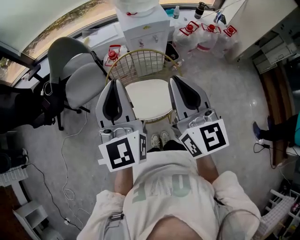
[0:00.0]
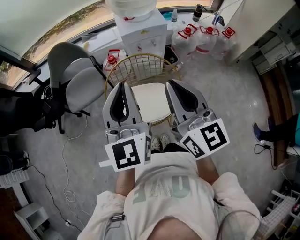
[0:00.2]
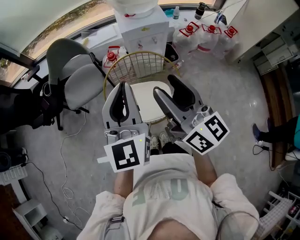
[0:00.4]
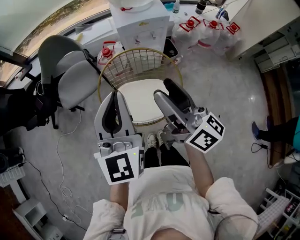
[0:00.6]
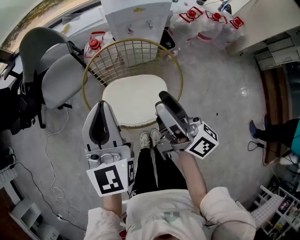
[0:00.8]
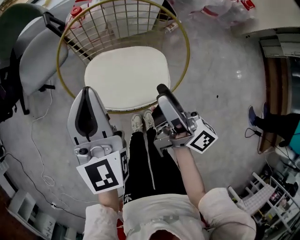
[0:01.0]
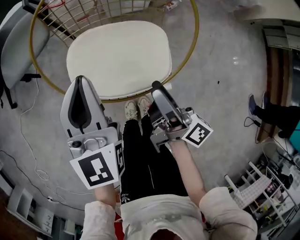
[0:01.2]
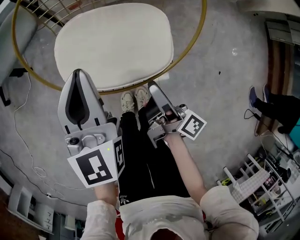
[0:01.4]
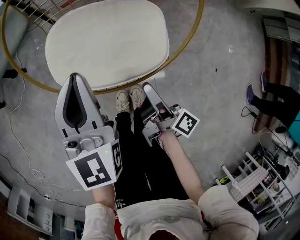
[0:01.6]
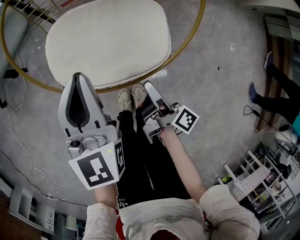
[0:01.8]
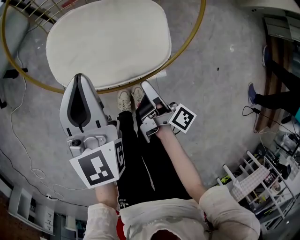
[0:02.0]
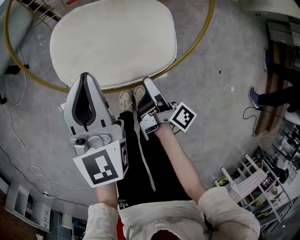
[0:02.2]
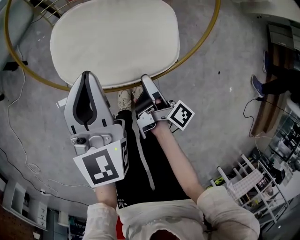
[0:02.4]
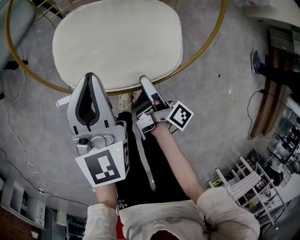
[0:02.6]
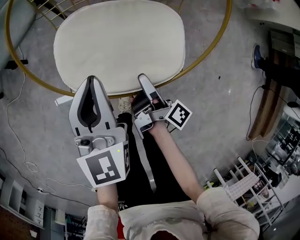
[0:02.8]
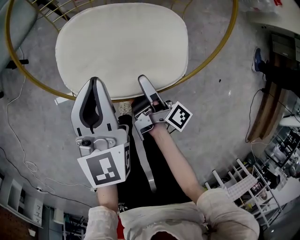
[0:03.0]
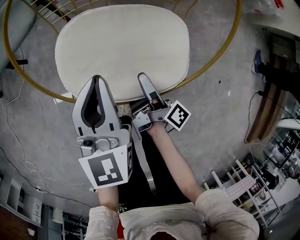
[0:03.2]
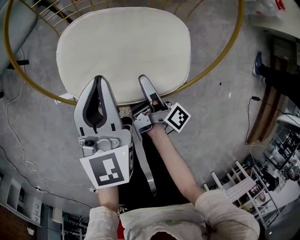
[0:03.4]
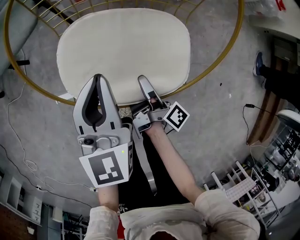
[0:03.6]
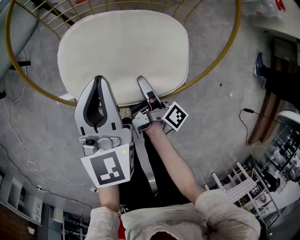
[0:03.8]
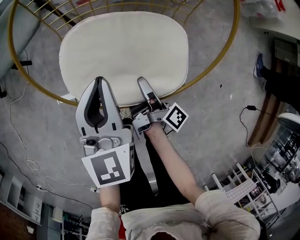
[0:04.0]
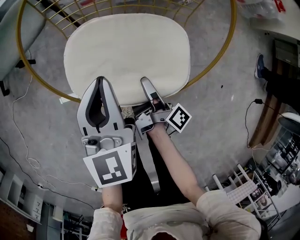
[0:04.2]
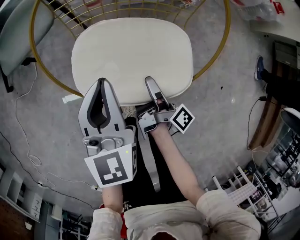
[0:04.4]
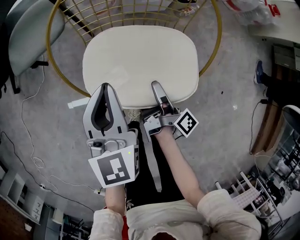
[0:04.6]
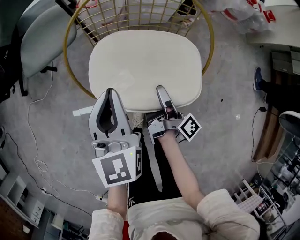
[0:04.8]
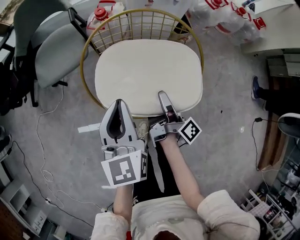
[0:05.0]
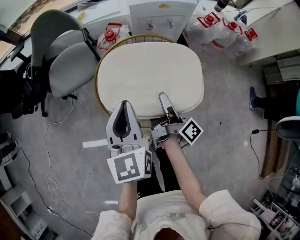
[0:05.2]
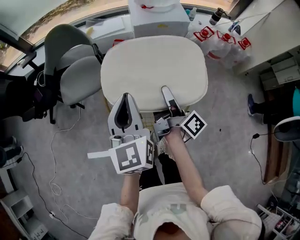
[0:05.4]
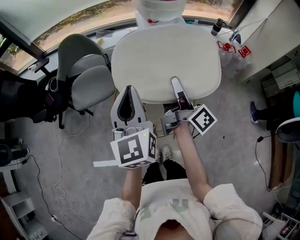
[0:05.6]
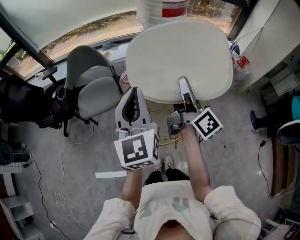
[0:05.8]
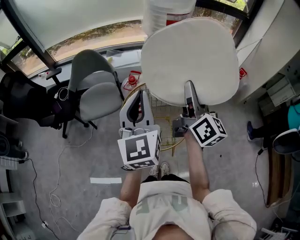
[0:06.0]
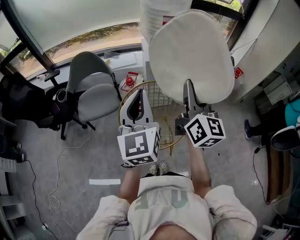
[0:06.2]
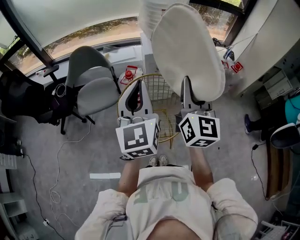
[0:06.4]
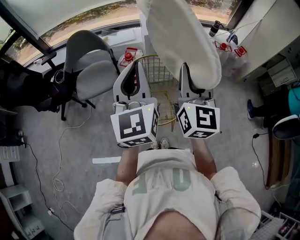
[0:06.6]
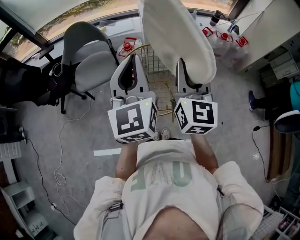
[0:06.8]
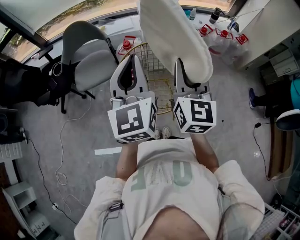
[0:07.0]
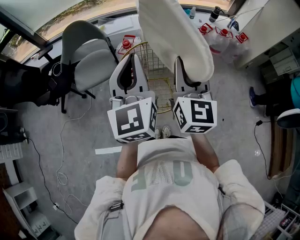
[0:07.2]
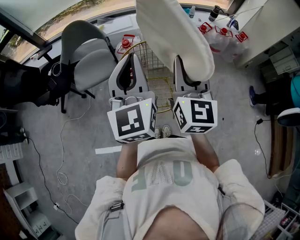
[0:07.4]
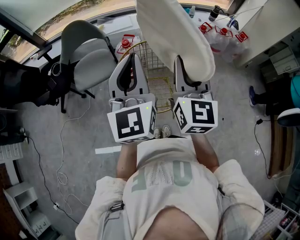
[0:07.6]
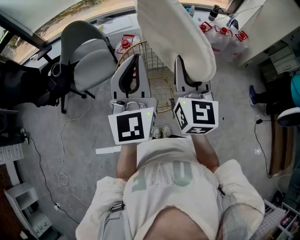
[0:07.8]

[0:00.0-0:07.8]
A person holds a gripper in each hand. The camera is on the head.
0:00.0 to 0:01.6: Both grippers travel together downward, roughly 50 cm. The left gripper rotates some 20 degrees, while the right gripper rotates around the line of its fingers by roughly 80 degrees, clockwise from behind, and opens its fingers.
0:01.6 to 0:03.2: The right gripper moves forward and downward, about 10 cm; the left gripper moves downward, approximately 5 cm.
0:03.2 to 0:04.6: The two grippers go roughly 10 cm upward. The right gripper closes up.
0:04.6 to 0:06.2: Both grippers move upward, approximately 50 cm. The left gripper rotates approximately 30 degrees. The right gripper rotates around the line of its fingers by roughly 80 degrees, counterclockwise from behind.
0:06.2 to 0:07.8: The right gripper goes about 5 cm backward.

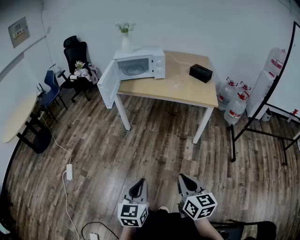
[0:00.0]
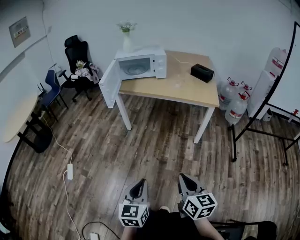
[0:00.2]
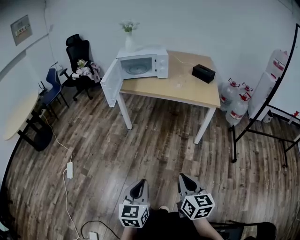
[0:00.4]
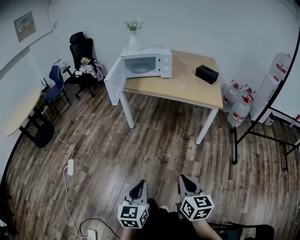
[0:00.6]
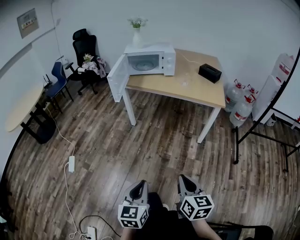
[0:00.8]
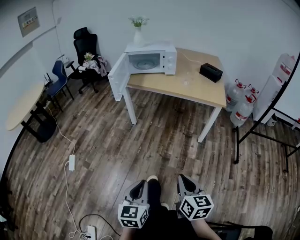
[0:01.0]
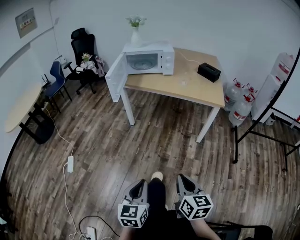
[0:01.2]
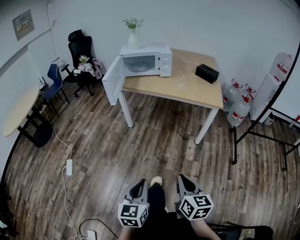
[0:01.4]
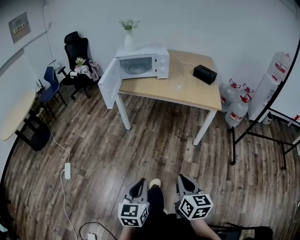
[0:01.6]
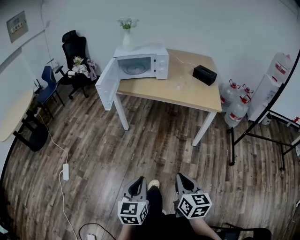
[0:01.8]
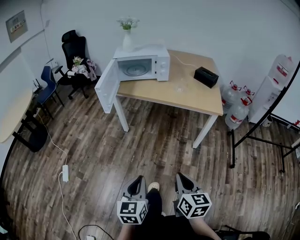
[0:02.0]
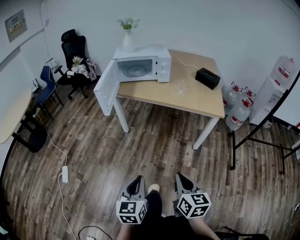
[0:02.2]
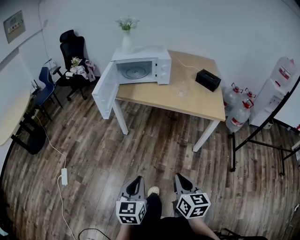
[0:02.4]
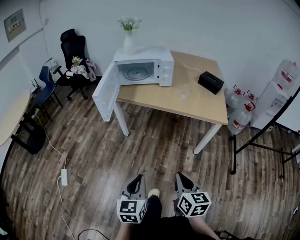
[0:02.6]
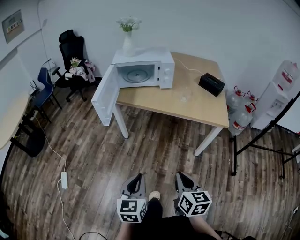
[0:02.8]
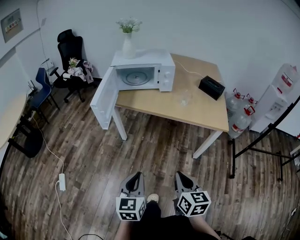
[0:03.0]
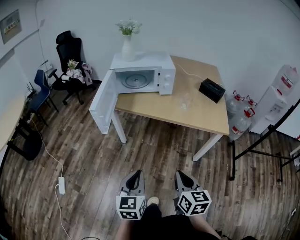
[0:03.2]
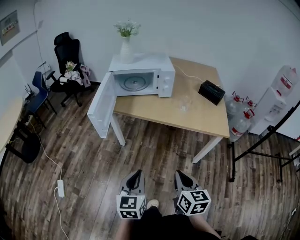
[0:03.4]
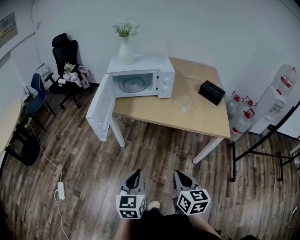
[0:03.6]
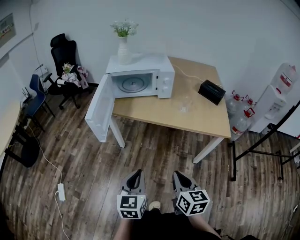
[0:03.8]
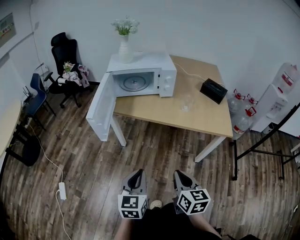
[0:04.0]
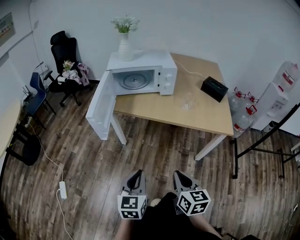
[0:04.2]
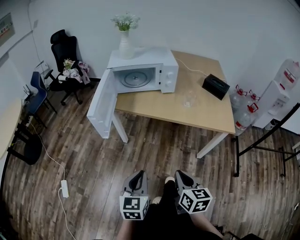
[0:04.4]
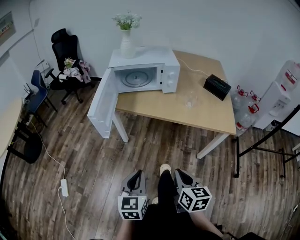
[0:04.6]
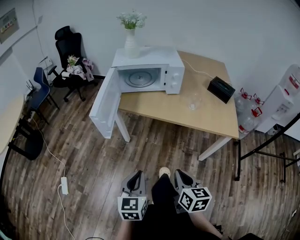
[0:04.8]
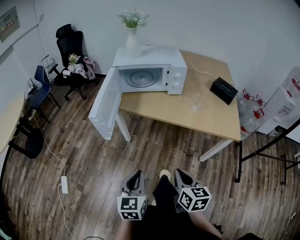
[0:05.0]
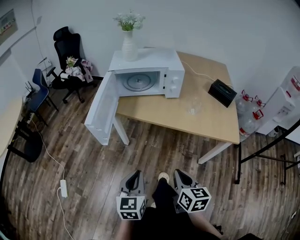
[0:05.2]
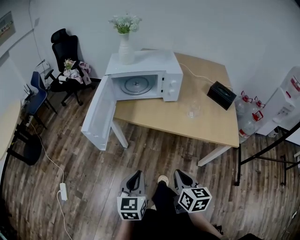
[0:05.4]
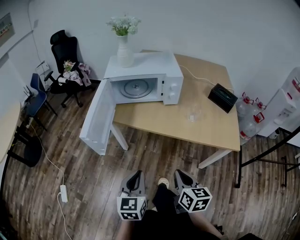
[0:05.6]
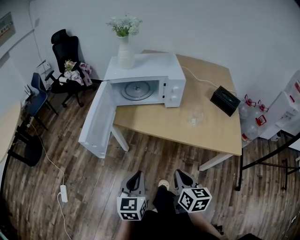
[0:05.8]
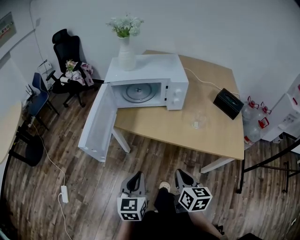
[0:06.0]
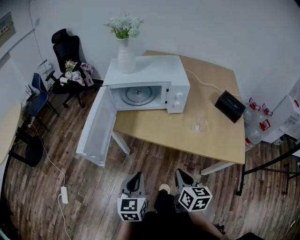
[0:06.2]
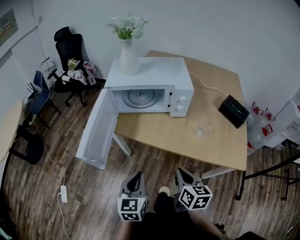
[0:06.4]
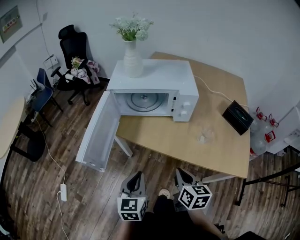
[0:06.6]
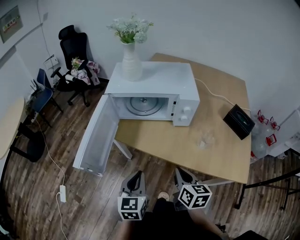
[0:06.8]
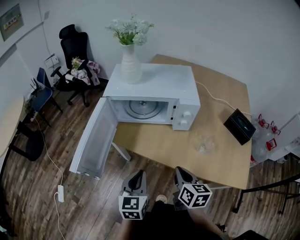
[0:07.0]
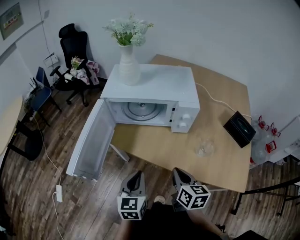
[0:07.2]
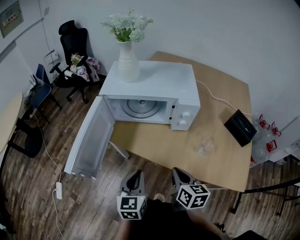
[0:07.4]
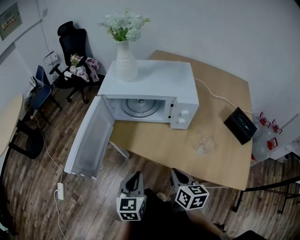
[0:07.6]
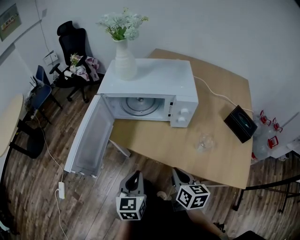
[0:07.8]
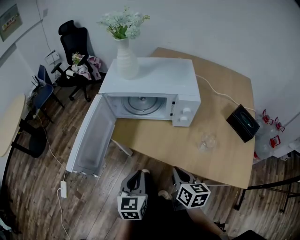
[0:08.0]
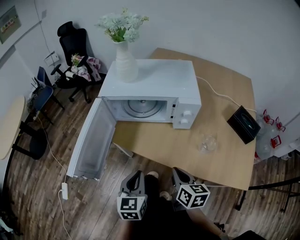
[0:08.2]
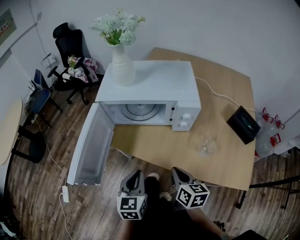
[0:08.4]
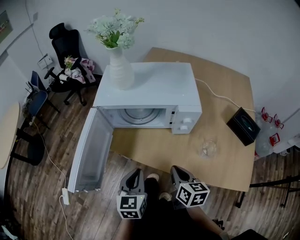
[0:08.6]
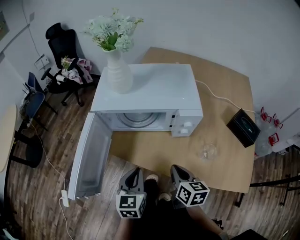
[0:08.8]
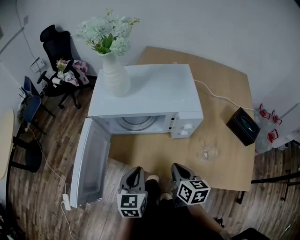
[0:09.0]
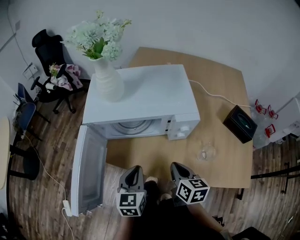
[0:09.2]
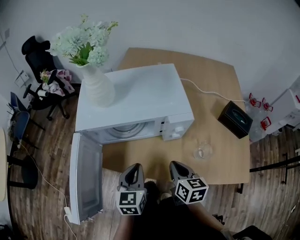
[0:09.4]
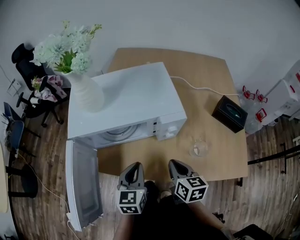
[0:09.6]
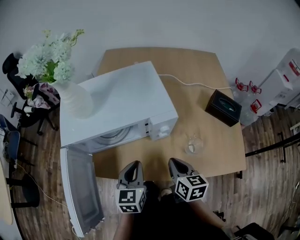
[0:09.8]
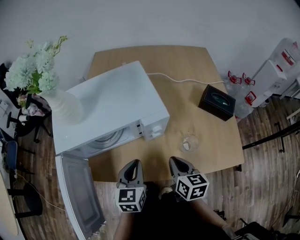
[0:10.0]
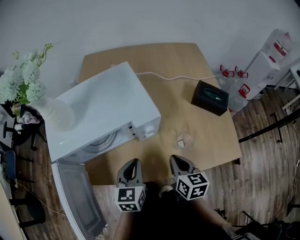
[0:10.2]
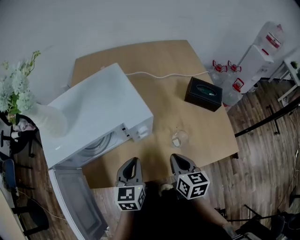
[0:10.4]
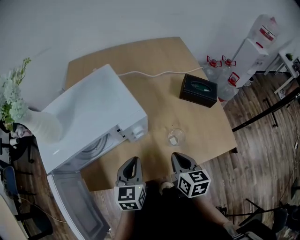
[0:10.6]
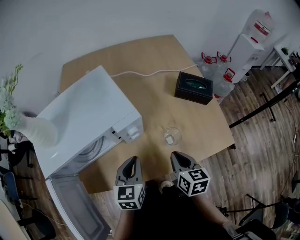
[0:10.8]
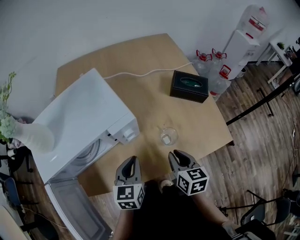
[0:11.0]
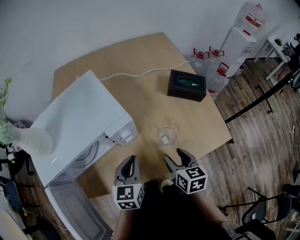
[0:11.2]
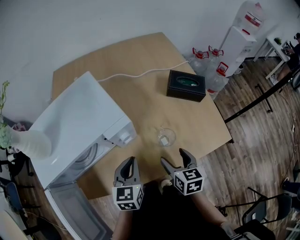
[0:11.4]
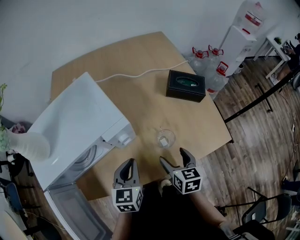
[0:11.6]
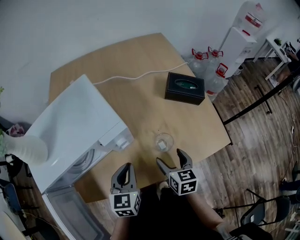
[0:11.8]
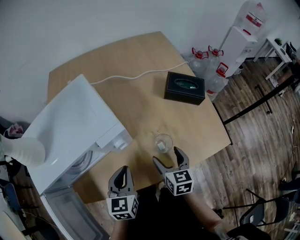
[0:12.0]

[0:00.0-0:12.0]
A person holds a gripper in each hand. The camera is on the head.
0:00.0 to 0:01.6: The grippers stay close to where they were, moving slightly.
0:01.6 to 0:03.0: Both grippers travel together forward, about 20 cm.
0:03.0 to 0:04.4: The two grippers go approximately 10 cm forward.
0:04.4 to 0:06.0: The two grippers go about 15 cm forward.
0:06.0 to 0:07.6: Both grippers move forward, some 15 cm.
0:07.6 to 0:09.0: Both grippers move forward, some 10 cm.
0:09.0 to 0:10.4: The left gripper shifts by some 15 cm, and changes its angle by approximately 30 degrees; the right gripper changes place by some 10 cm, and swivels some 30 degrees.
0:10.4 to 0:12.0: The right gripper travels downward by about 5 cm, and opens up.

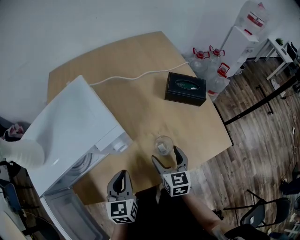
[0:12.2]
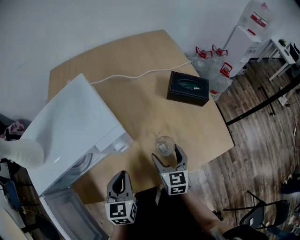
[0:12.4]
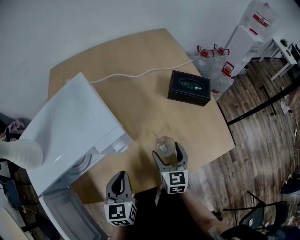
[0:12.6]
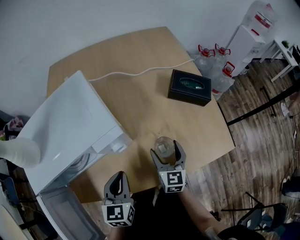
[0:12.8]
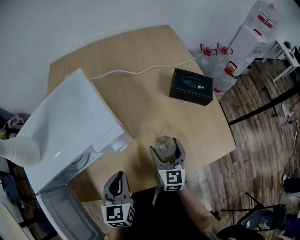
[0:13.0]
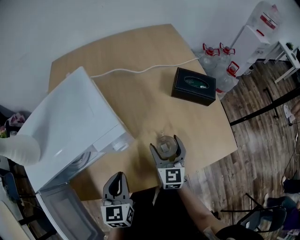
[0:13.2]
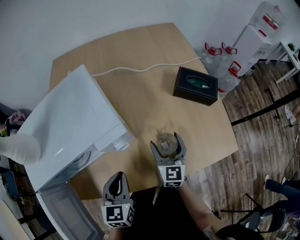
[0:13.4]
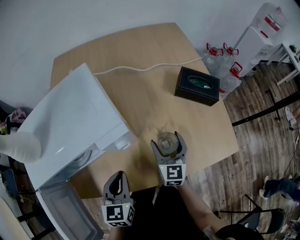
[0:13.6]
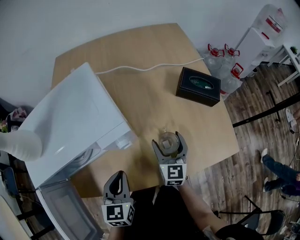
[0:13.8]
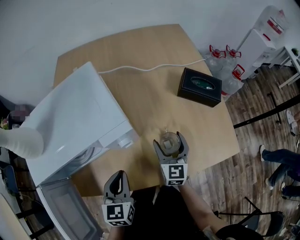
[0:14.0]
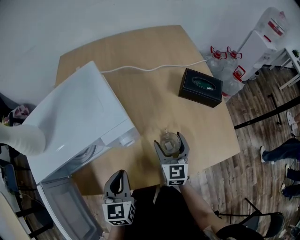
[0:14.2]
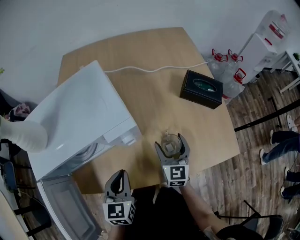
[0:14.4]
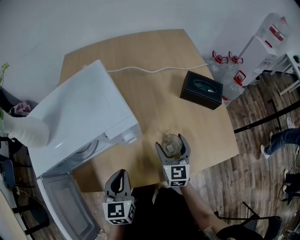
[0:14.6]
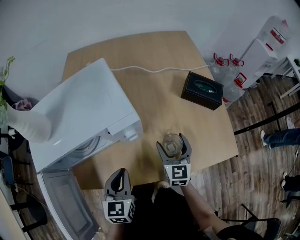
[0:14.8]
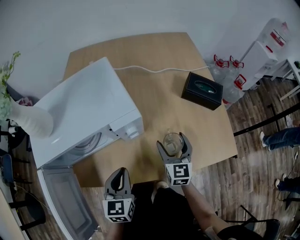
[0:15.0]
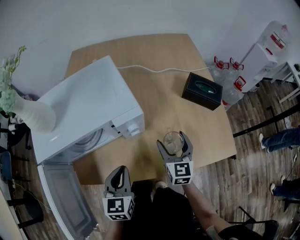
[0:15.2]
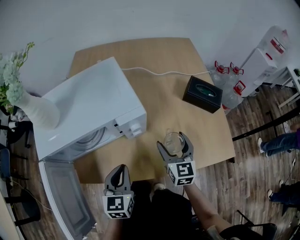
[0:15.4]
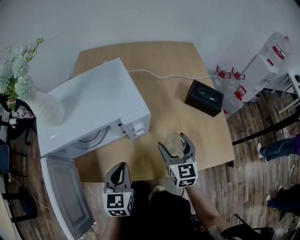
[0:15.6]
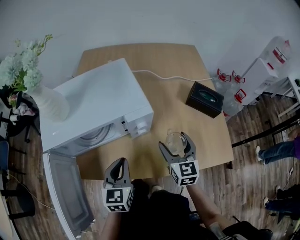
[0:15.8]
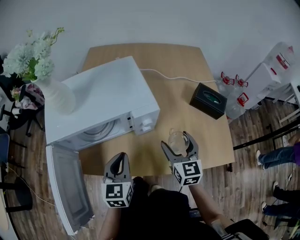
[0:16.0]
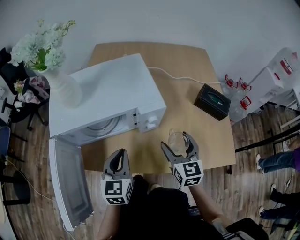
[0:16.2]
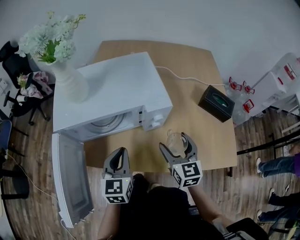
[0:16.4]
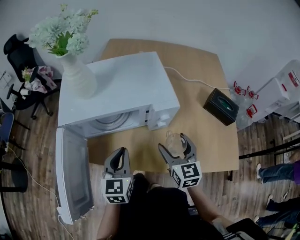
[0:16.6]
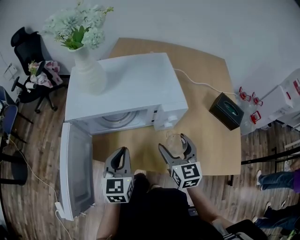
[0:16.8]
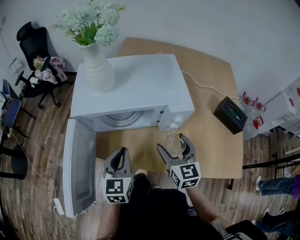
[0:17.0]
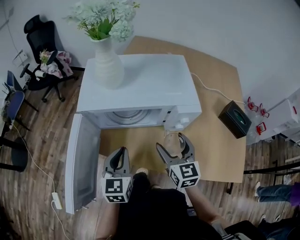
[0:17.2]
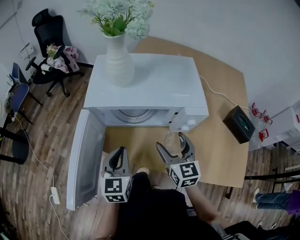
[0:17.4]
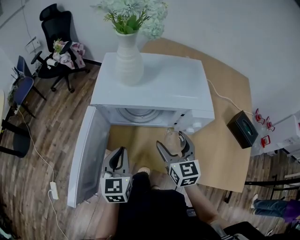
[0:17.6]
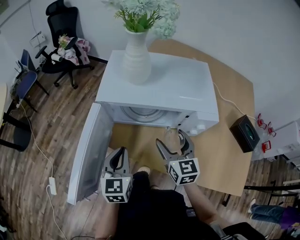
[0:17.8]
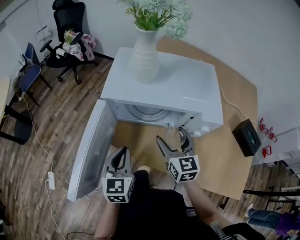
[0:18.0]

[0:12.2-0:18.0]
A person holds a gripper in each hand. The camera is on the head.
0:12.2 to 0:13.6: The right gripper moves forward, roughly 5 cm.
0:13.6 to 0:15.0: The grippers make only small movements.
0:15.0 to 0:16.6: The right gripper goes approximately 15 cm to the left and upward, and changes its angle by about 20 degrees. The left gripper heads to the left, covering some 10 cm.
0:16.6 to 0:18.0: The left gripper moves to the left, about 10 cm; the right gripper shifts roughly 15 cm to the left and forward.
